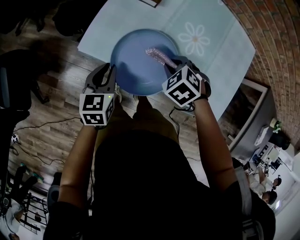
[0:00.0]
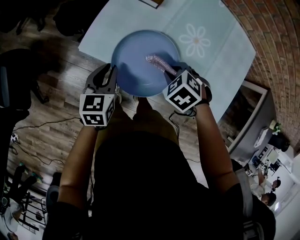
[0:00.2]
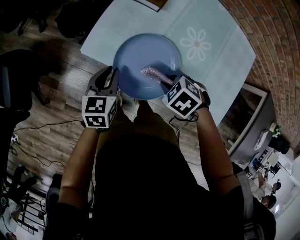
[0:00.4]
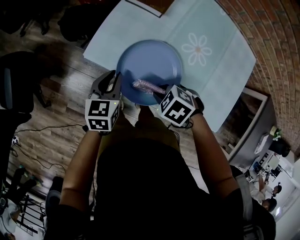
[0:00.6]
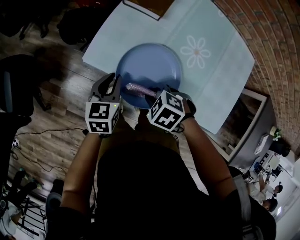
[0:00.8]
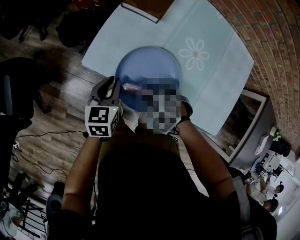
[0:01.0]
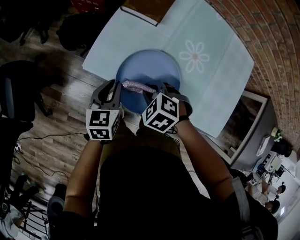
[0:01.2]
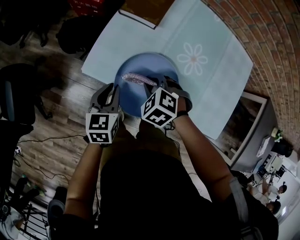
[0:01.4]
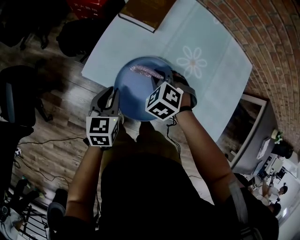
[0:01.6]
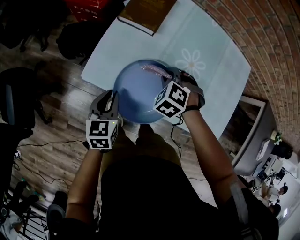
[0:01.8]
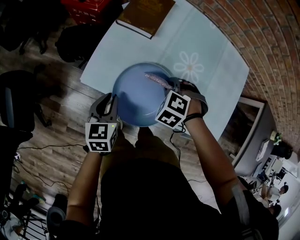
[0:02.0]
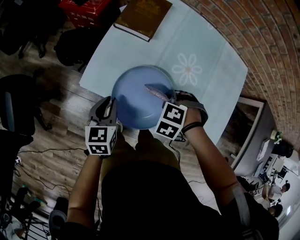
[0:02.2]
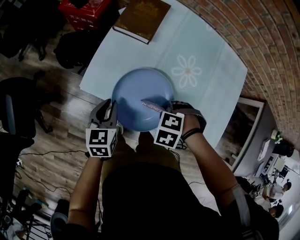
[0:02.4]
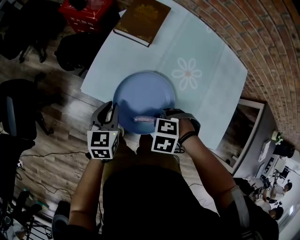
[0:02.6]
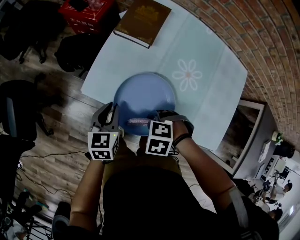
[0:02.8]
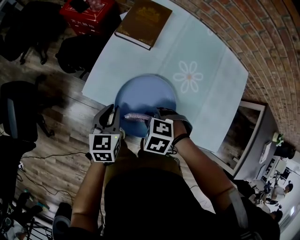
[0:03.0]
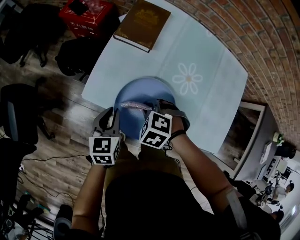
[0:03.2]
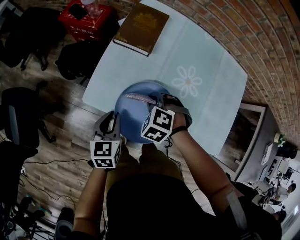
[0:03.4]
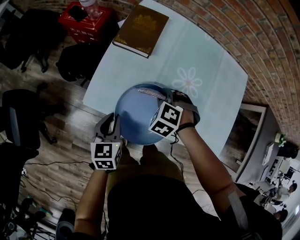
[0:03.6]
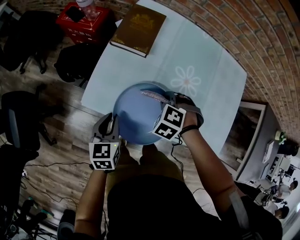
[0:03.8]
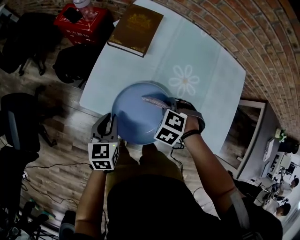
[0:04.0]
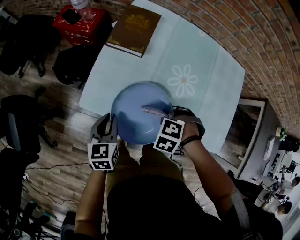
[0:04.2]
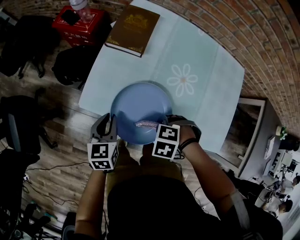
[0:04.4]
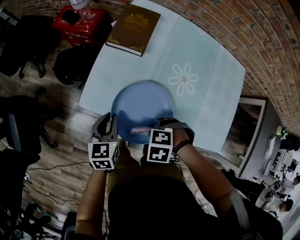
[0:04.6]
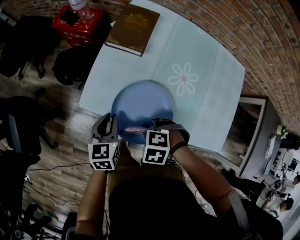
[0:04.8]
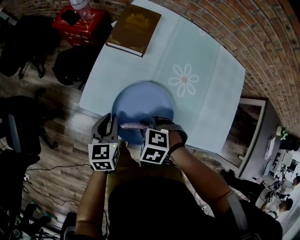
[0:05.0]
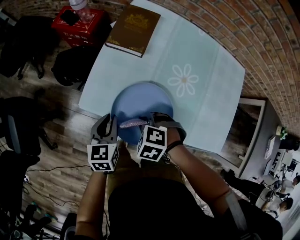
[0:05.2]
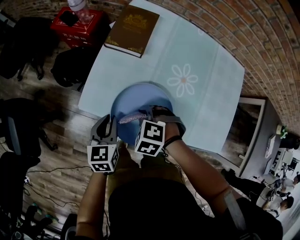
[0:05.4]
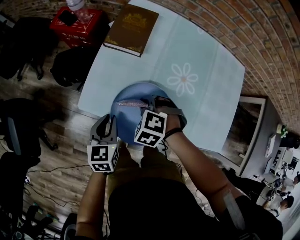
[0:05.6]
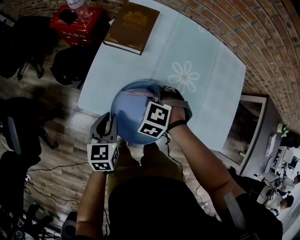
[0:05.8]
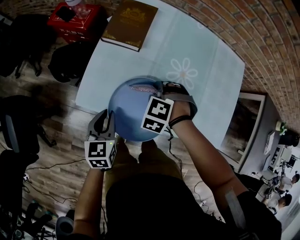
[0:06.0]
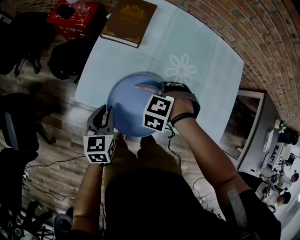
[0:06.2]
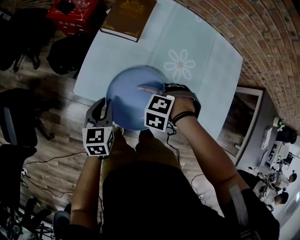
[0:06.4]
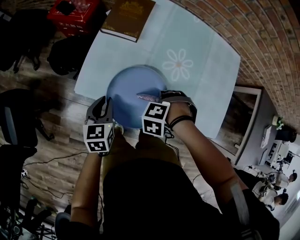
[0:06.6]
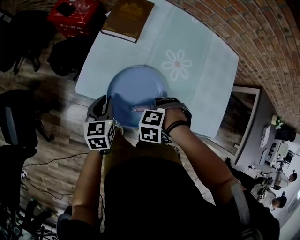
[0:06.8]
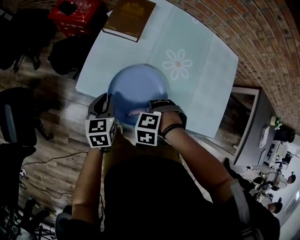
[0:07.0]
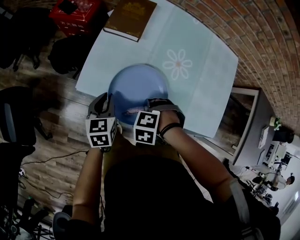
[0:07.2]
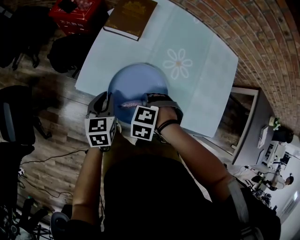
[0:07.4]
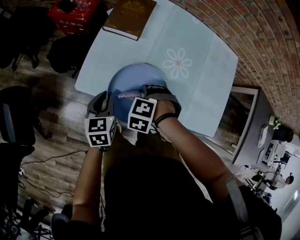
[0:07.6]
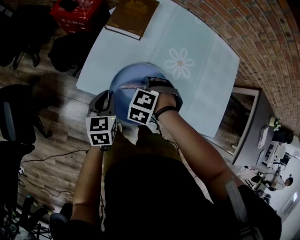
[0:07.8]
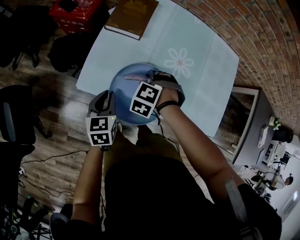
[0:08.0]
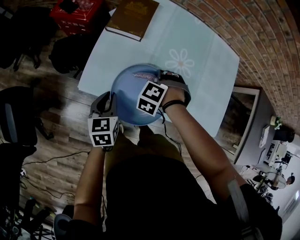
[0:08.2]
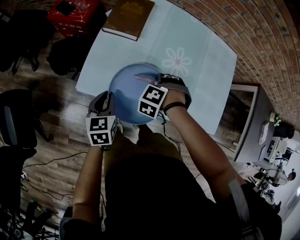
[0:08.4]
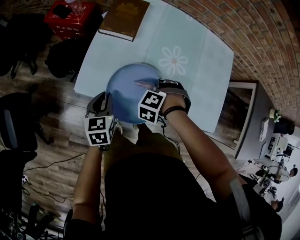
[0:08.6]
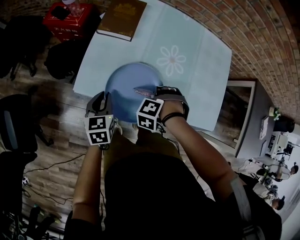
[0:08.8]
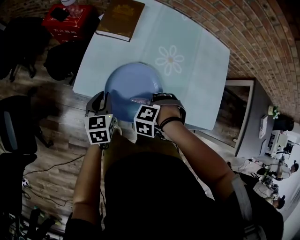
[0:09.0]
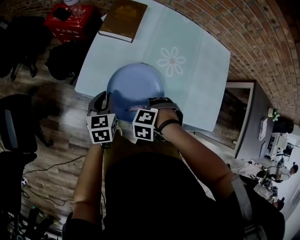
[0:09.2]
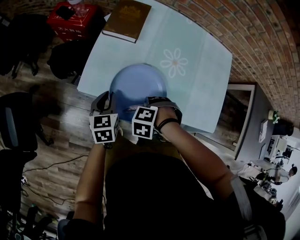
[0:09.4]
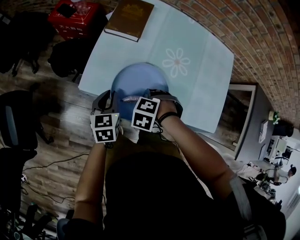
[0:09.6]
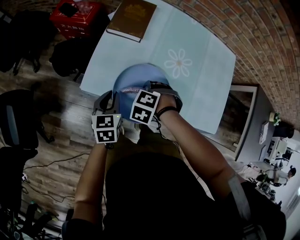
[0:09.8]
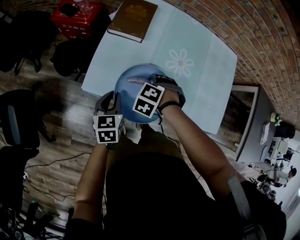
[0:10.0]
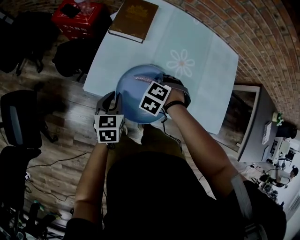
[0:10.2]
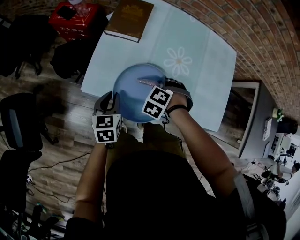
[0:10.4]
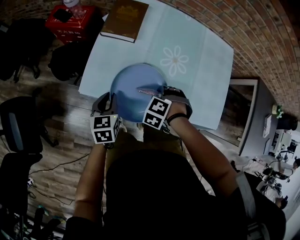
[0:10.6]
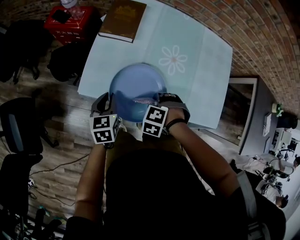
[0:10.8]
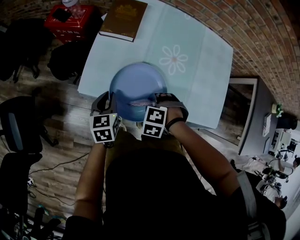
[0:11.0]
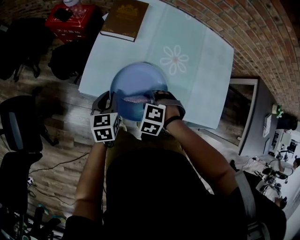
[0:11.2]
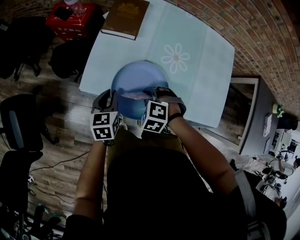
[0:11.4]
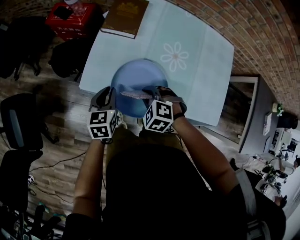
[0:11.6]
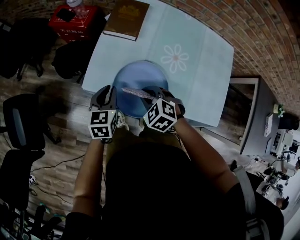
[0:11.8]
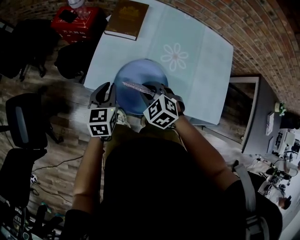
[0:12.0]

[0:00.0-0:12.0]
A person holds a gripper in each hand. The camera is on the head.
0:00.0 to 0:01.6: The right gripper changes place by about 10 cm.
0:01.6 to 0:03.0: The right gripper ends up approximately 10 cm from where it was, and changes its angle by some 30 degrees.
0:04.4 to 0:06.0: The right gripper changes place by some 15 cm, and rotates some 30 degrees.
0:07.6 to 0:09.0: The right gripper moves some 10 cm.
0:09.0 to 0:10.4: The right gripper moves roughly 10 cm, and changes its angle by roughly 20 degrees.
0:10.4 to 0:12.0: The right gripper ends up about 10 cm from where it was, and turns by roughly 40 degrees, while the left gripper travels upward by roughly 5 cm.

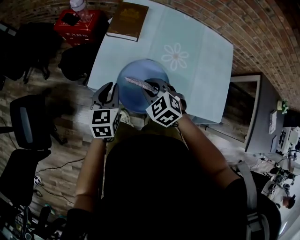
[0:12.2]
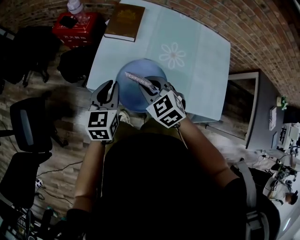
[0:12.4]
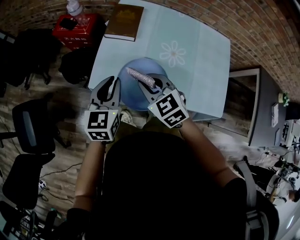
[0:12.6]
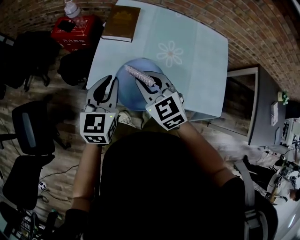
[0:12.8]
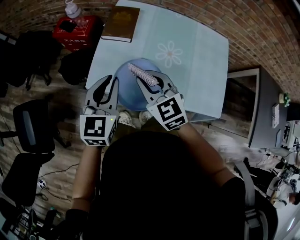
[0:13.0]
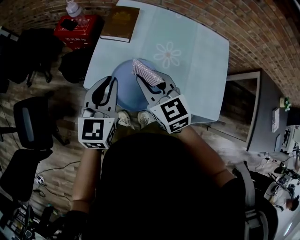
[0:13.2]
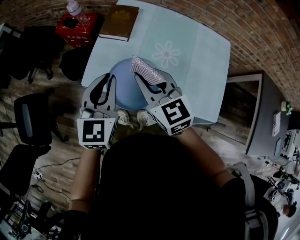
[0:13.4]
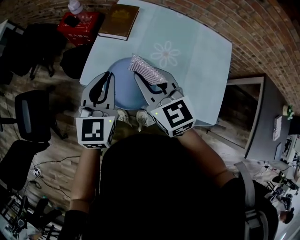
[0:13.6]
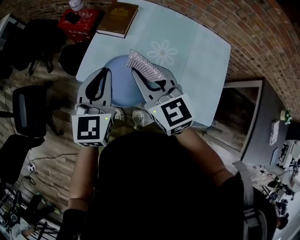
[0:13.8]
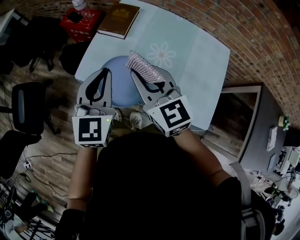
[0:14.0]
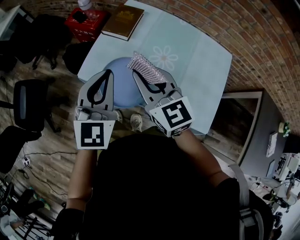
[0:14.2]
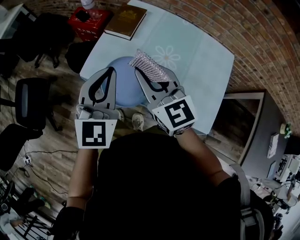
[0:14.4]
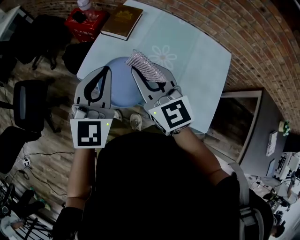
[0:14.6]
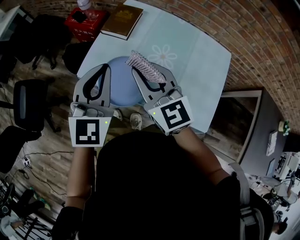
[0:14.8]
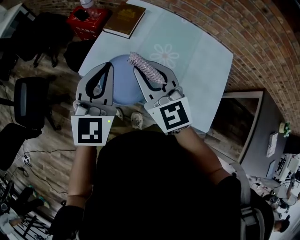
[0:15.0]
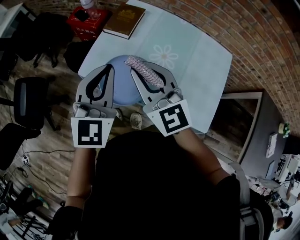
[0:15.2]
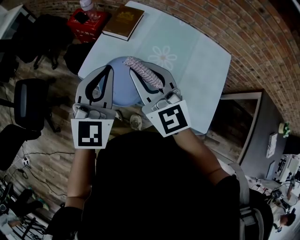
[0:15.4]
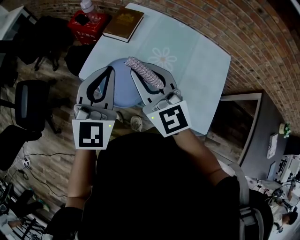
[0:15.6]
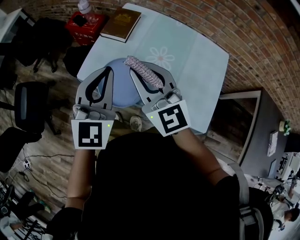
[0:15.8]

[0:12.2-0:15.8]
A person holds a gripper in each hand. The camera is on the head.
0:12.2 to 0:14.0: The two grippers go approximately 20 cm upward and to the right. The left gripper changes its angle by about 20 degrees, while the right gripper points its fingers roughly 40 degrees further upward.
0:14.0 to 0:15.8: Both grippers move upward, some 5 cm.

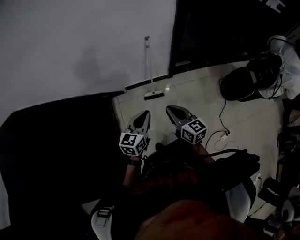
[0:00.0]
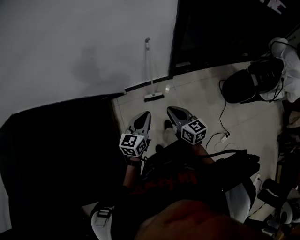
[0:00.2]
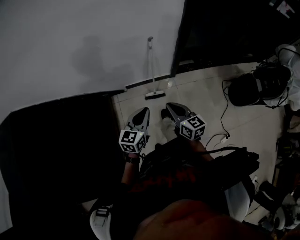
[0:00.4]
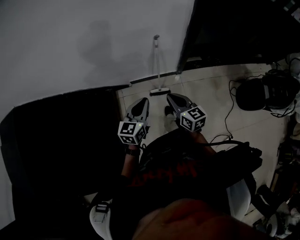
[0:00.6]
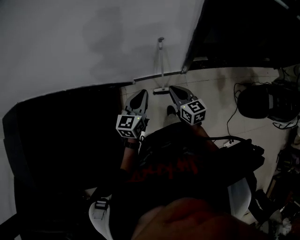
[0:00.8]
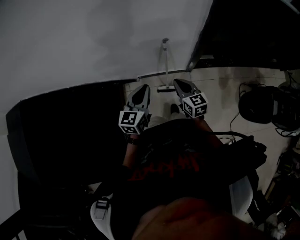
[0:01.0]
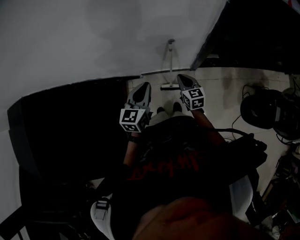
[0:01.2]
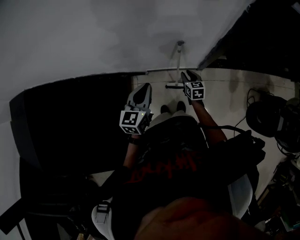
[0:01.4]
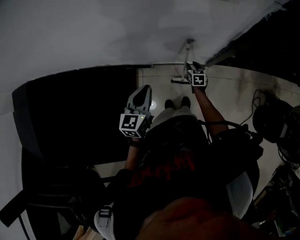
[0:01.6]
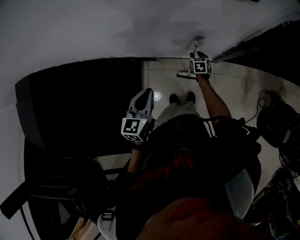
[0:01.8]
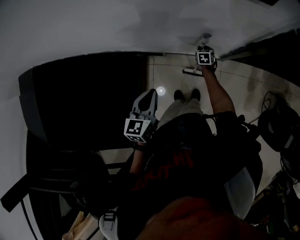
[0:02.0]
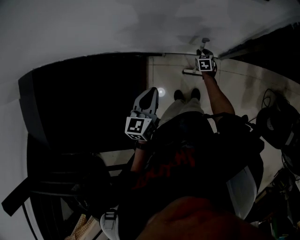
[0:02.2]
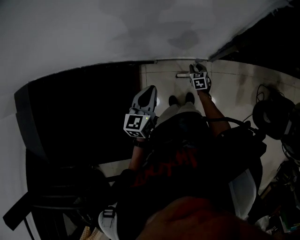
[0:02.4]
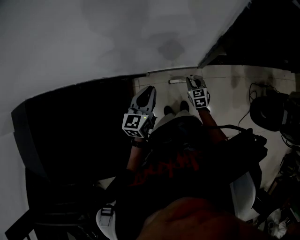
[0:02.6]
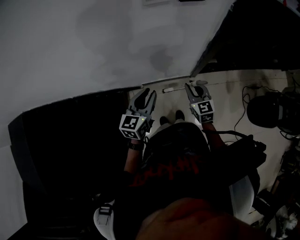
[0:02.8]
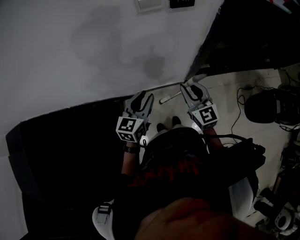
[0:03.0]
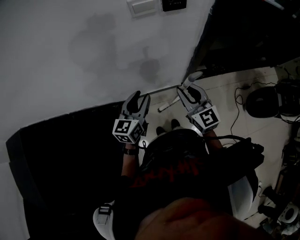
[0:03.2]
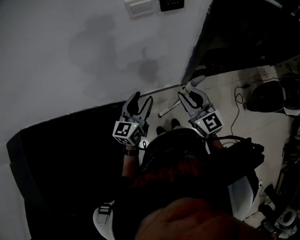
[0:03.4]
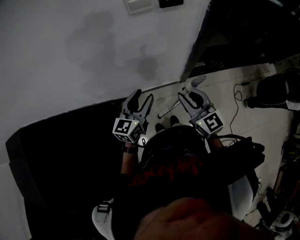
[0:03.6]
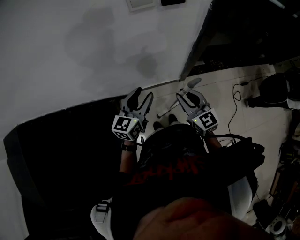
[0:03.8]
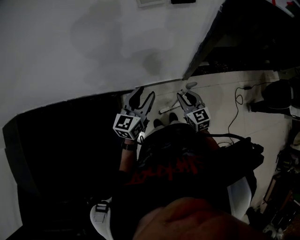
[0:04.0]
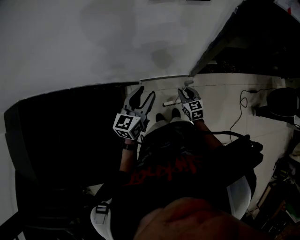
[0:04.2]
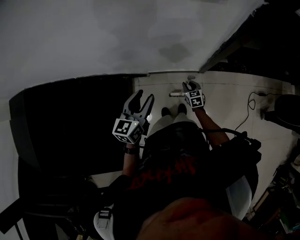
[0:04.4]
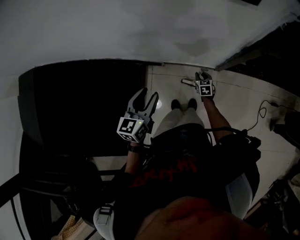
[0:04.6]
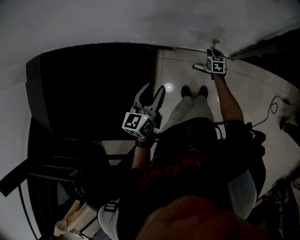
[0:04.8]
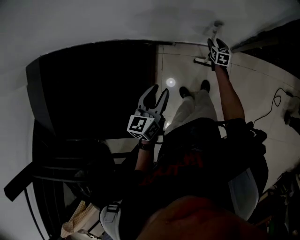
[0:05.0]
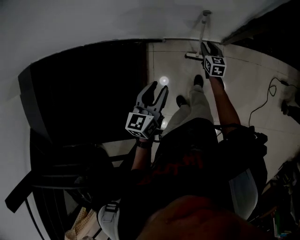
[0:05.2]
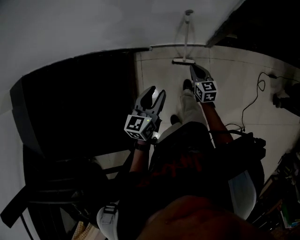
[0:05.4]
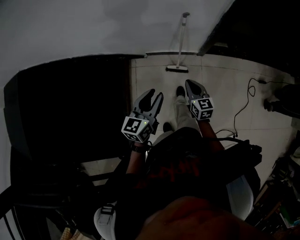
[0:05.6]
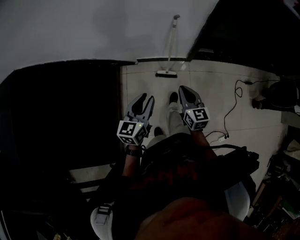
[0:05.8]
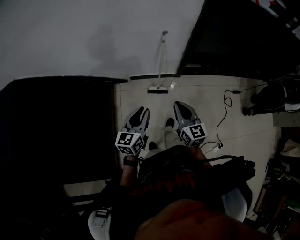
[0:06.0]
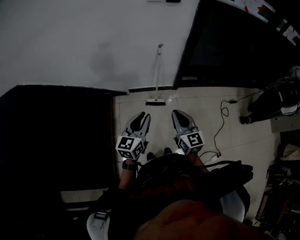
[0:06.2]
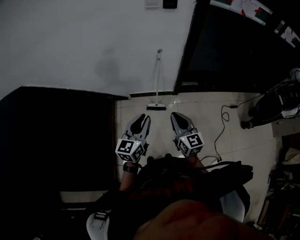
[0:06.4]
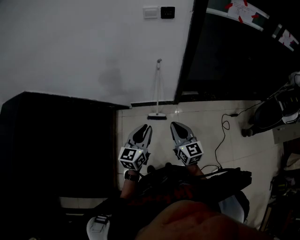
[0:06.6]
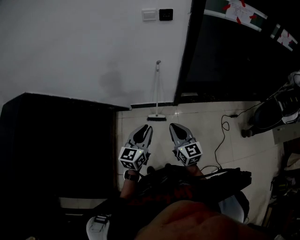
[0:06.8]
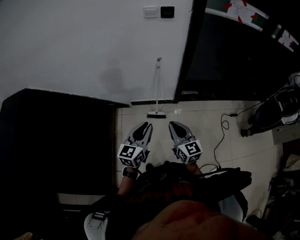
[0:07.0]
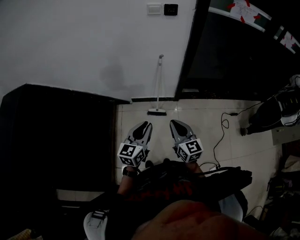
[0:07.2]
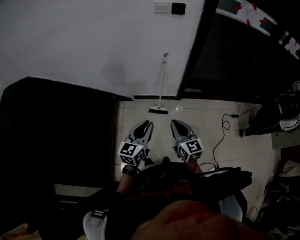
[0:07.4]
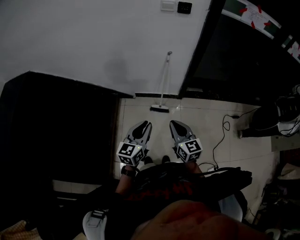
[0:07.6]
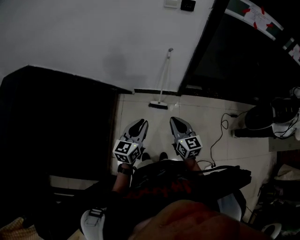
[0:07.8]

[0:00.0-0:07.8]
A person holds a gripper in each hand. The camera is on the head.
0:00.0 to 0:01.6: The right gripper is displaced forward and downward by roughly 60 cm, tips its fingers downward by some 30 degrees, and opens its fingers; the left gripper heads forward, covering some 35 cm, and turns by about 30 degrees.
0:01.6 to 0:03.2: The left gripper goes some 5 cm upward, turns by about 20 degrees, and opens. Meanwhile the right gripper shifts roughly 40 cm upward, and angles its fingers upward, by some 40 degrees.
0:03.2 to 0:04.6: The left gripper heads downward and to the left, covering approximately 10 cm, and turns by roughly 20 degrees. The right gripper goes some 40 cm downward, and points its fingers about 40 degrees further downward.
0:04.6 to 0:06.2: The left gripper goes roughly 30 cm backward, and closes. Meanwhile the right gripper heads backward and upward, covering about 60 cm, points its fingers about 40 degrees further upward, and closes.
0:06.2 to 0:07.8: The left gripper is displaced backward by about 5 cm.
